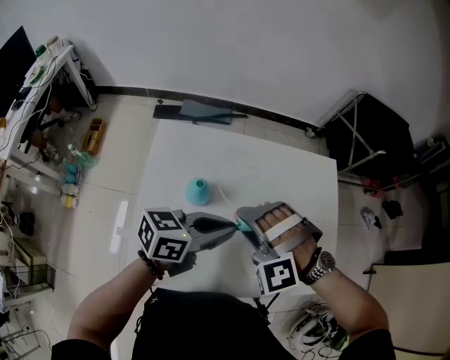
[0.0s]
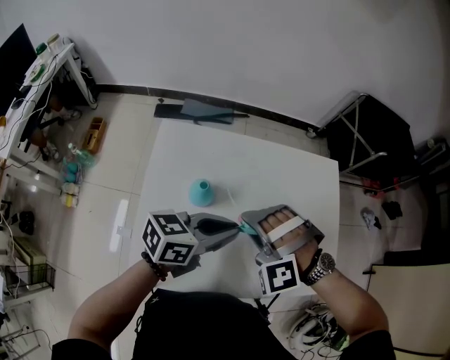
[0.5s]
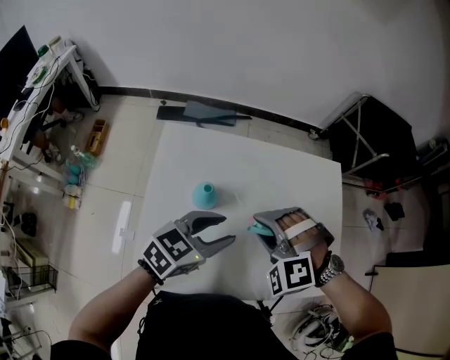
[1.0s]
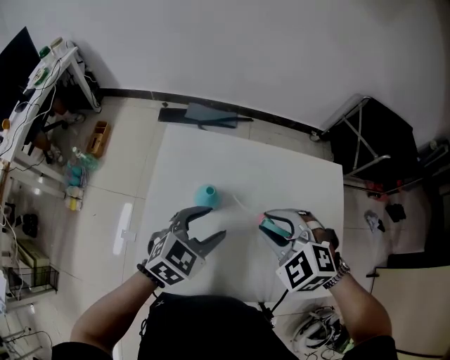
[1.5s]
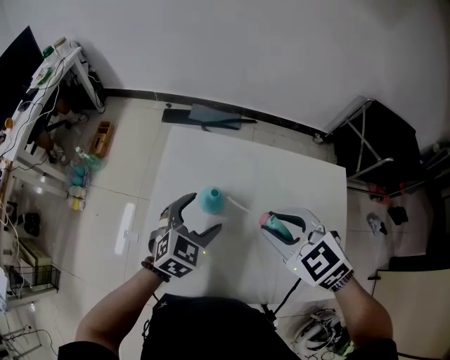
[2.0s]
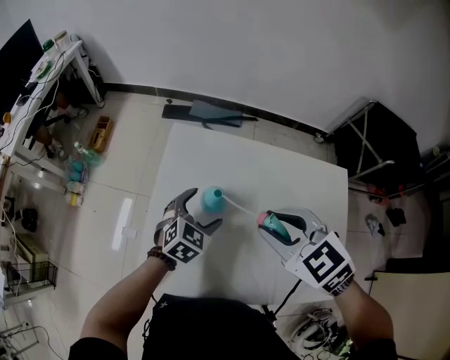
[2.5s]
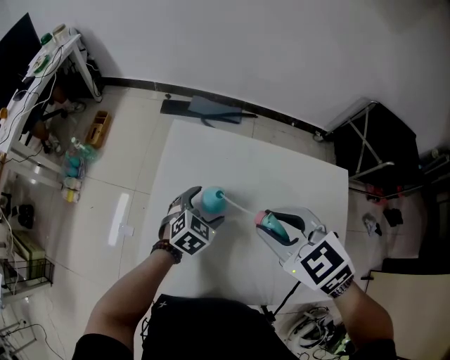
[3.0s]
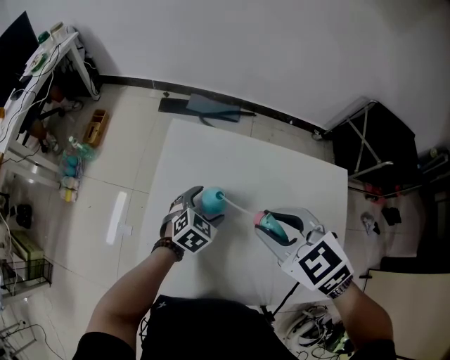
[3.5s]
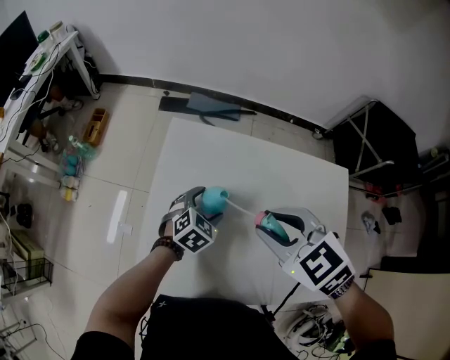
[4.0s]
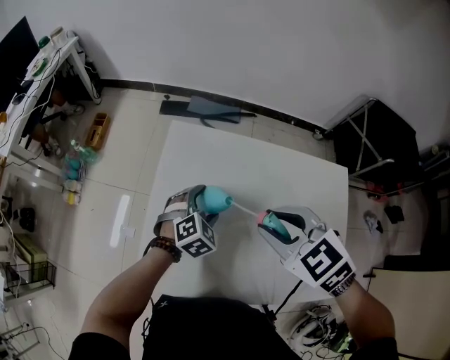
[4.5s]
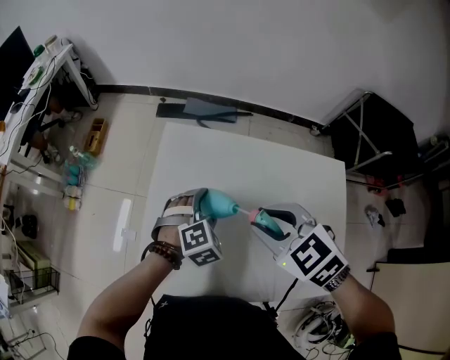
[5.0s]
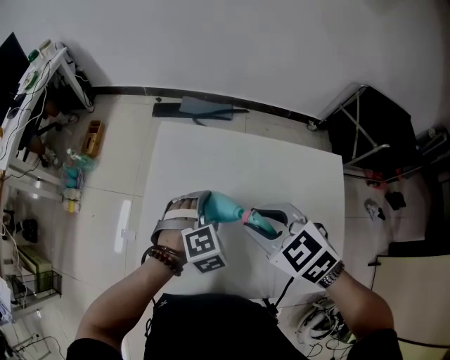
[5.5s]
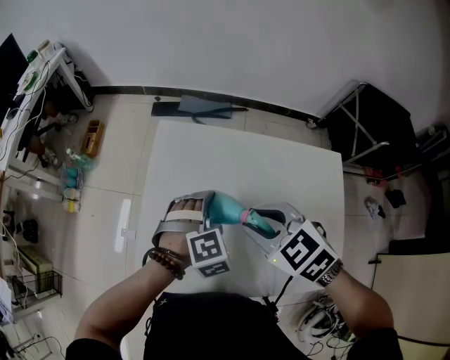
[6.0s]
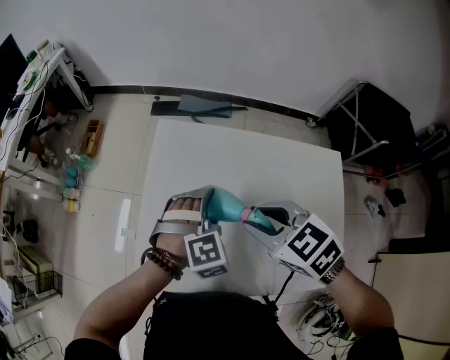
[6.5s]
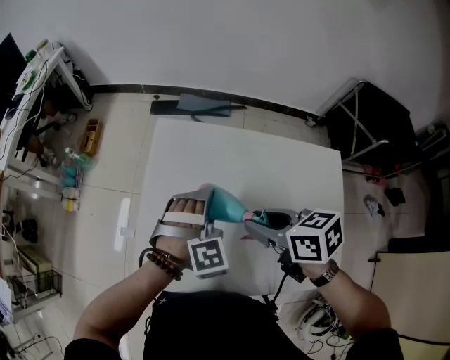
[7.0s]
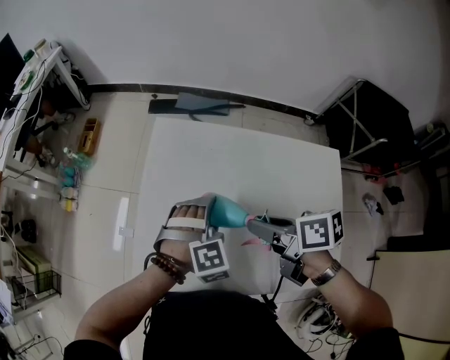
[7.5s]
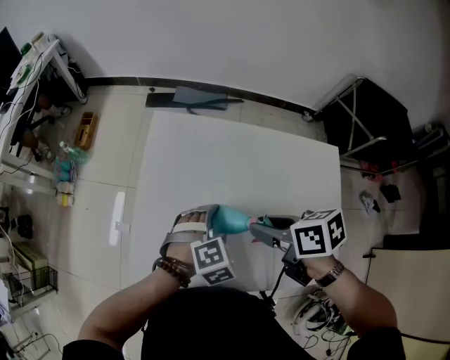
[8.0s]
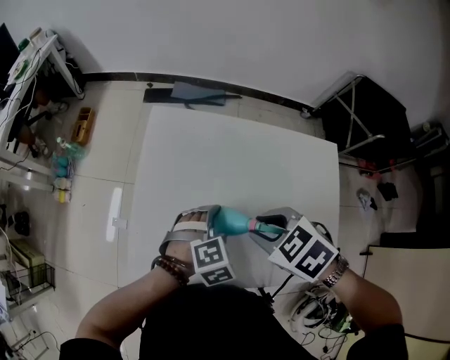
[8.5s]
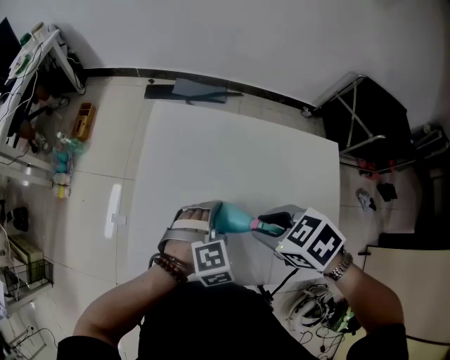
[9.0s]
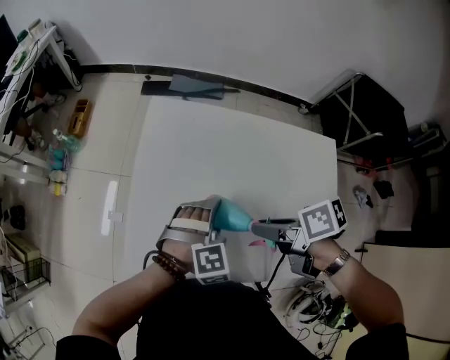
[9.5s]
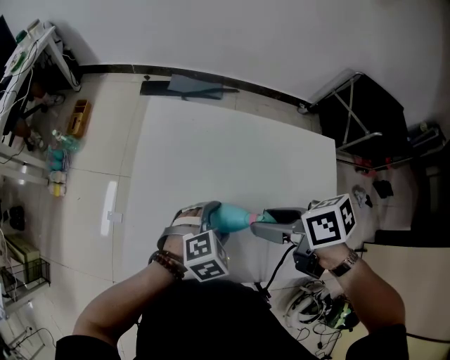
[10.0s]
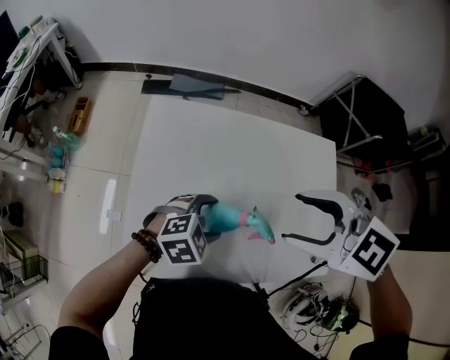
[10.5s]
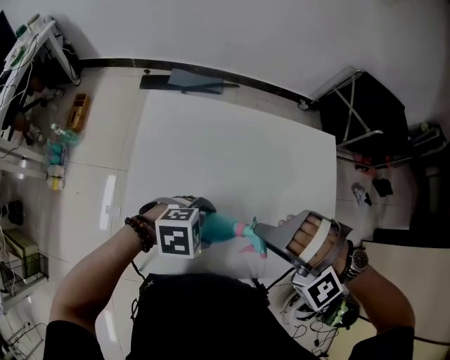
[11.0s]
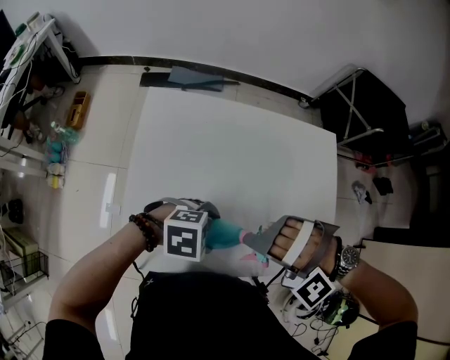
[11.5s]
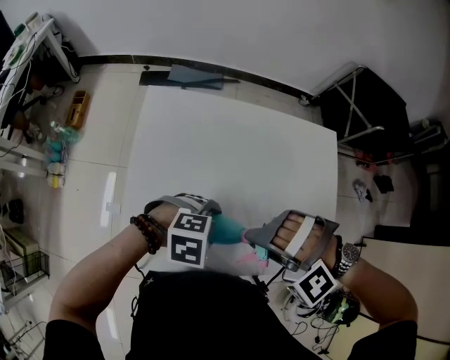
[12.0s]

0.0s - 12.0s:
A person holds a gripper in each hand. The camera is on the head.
0.0s - 2.0s: The right gripper goes about 5 cm upward, rotates around the line of its fingers by approximately 60 degrees, clockwise from behind, and closes up. Meanwhile the left gripper moves some 15 cm, rotates roughly 60 degrees, and opens up.
2.0s - 4.0s: The left gripper shifts about 10 cm downward.
4.0s - 6.0s: The left gripper moves upward, about 10 cm, and swivels roughly 40 degrees.
6.0s - 8.0s: The left gripper heads backward, covering roughly 5 cm. The right gripper shifts by approximately 5 cm, and twists approximately 50 degrees clockwise, seen from behind.
8.0s - 10.0s: The right gripper opens its fingers.
10.0s - 12.0s: The right gripper reaches roughly 10 cm upward, then returns, rolls counterclockwise, seen from behind, by about 120 degrees, and closes. Meanwhile the left gripper ends up approximately 5 cm from where it was, and changes its angle by approximately 40 degrees.

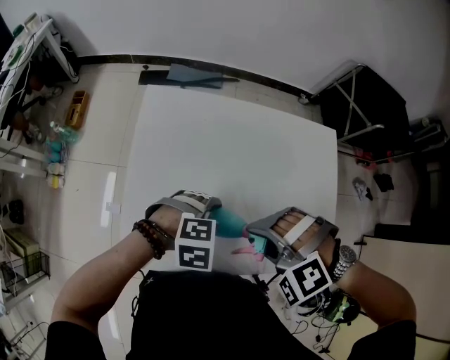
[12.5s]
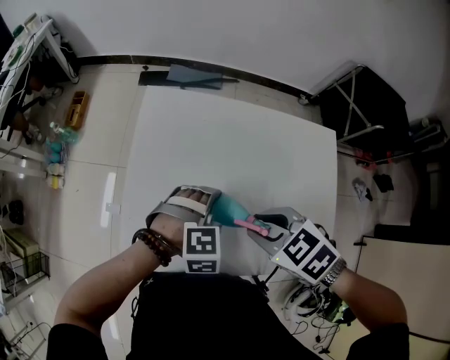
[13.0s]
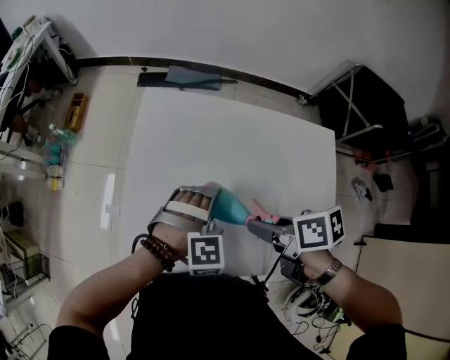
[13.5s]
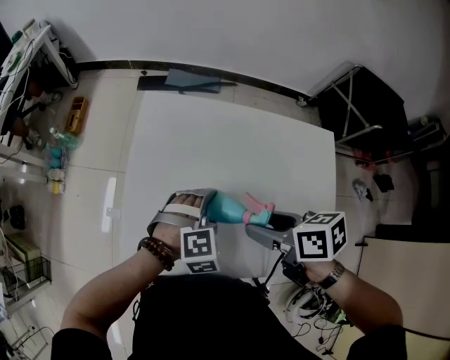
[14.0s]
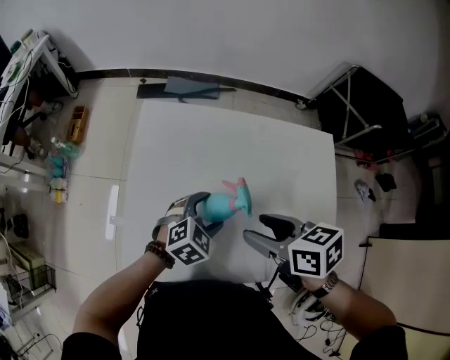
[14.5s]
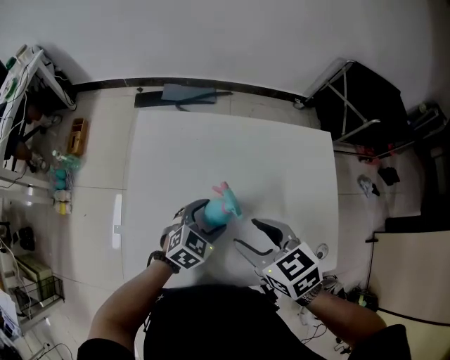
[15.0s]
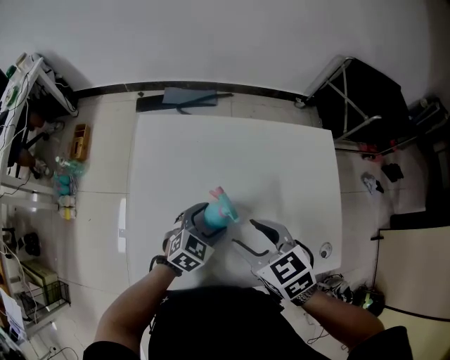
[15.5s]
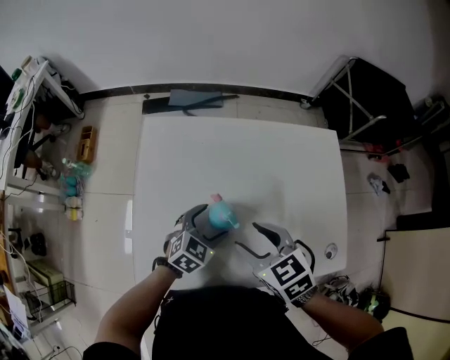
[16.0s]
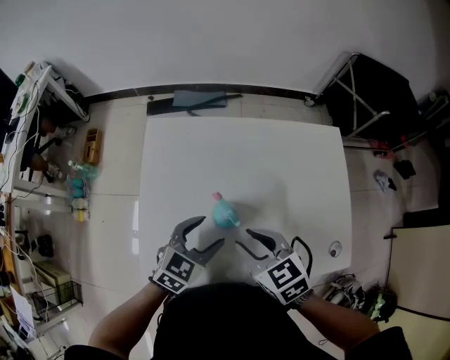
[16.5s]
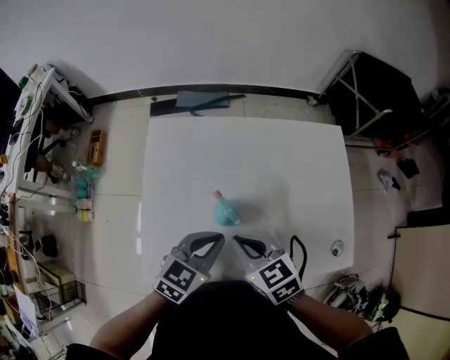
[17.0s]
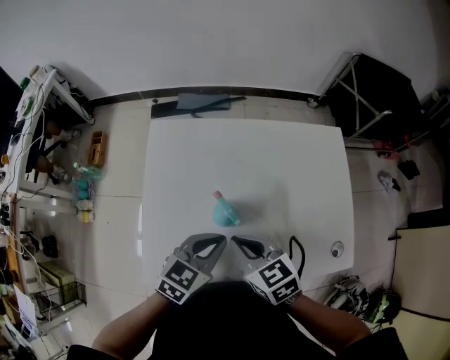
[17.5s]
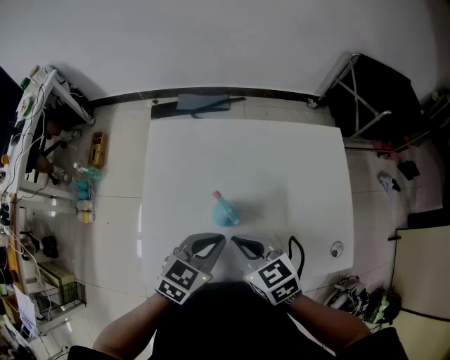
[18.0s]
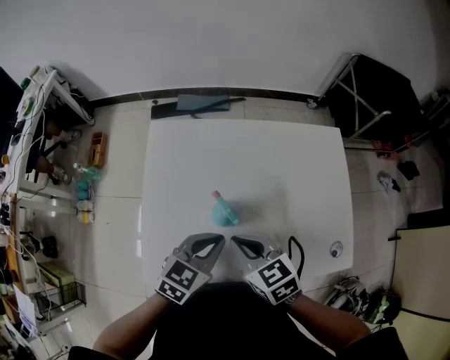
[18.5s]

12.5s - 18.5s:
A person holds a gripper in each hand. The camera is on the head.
12.5s - 14.5s: The left gripper shifts by some 5 cm, and rotates approximately 40 degrees. Meanwhile the right gripper shifts by approximately 5 cm, rotates around the line of its fingers by approximately 100 degrees, clockwise from behind, and opens up.
14.5s - 16.5s: The right gripper shifts by some 5 cm, and turns by about 20 degrees; the left gripper moves roughly 5 cm.
16.5s - 18.5s: The left gripper closes up, while the right gripper closes up.

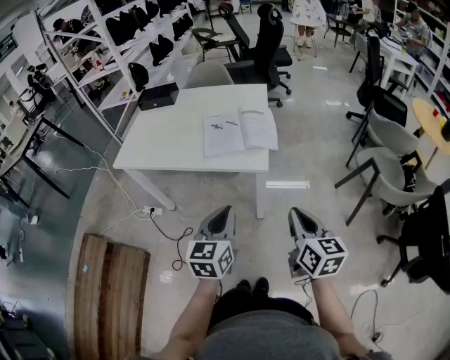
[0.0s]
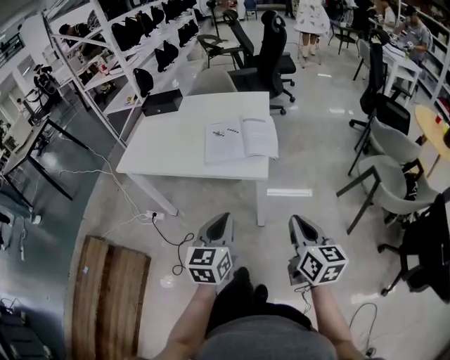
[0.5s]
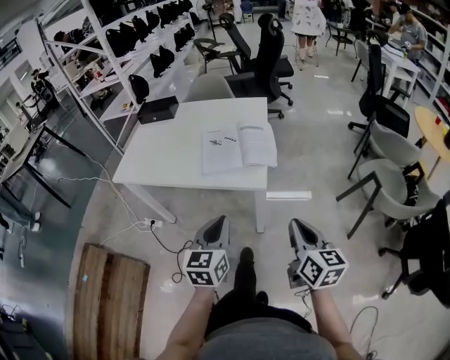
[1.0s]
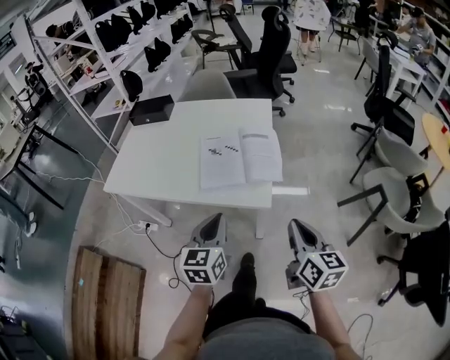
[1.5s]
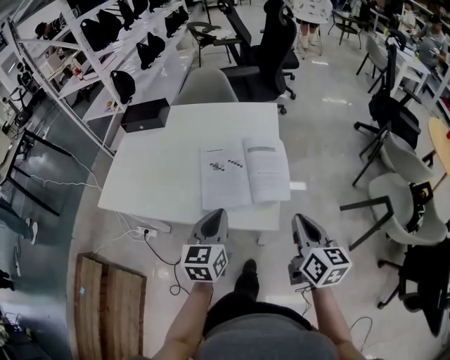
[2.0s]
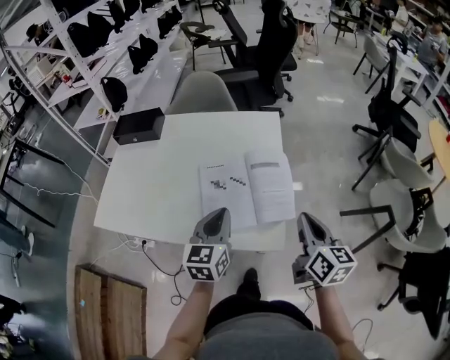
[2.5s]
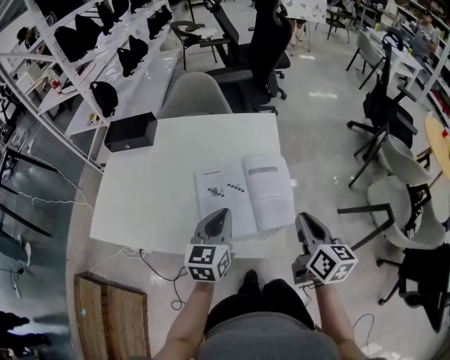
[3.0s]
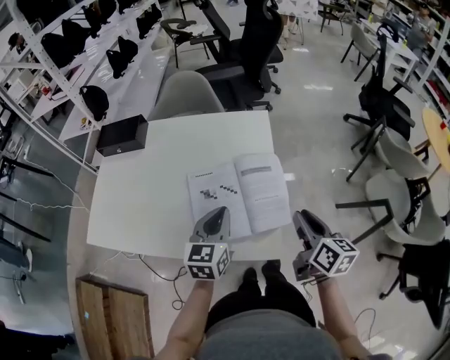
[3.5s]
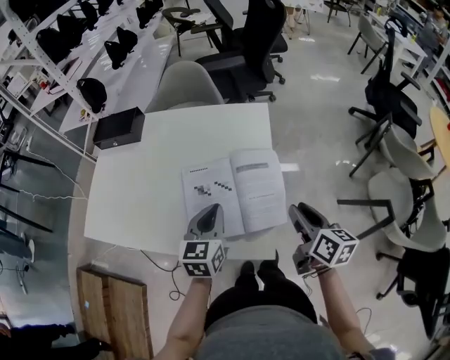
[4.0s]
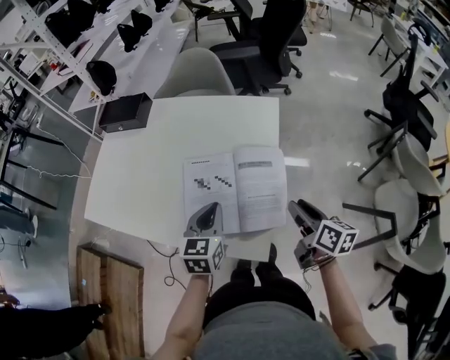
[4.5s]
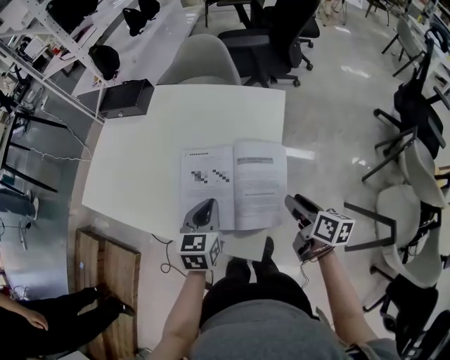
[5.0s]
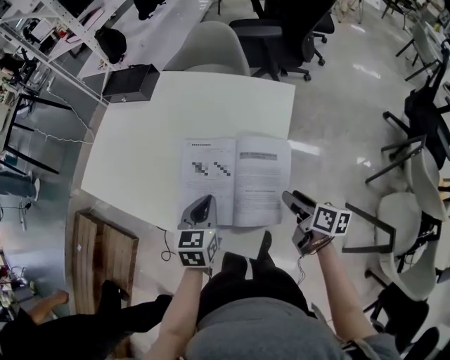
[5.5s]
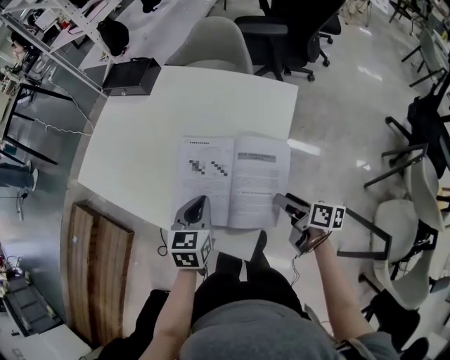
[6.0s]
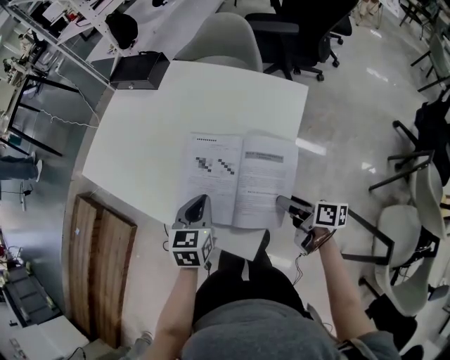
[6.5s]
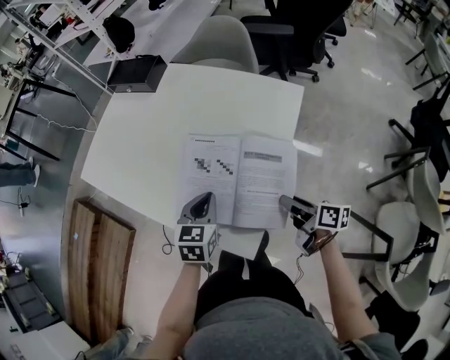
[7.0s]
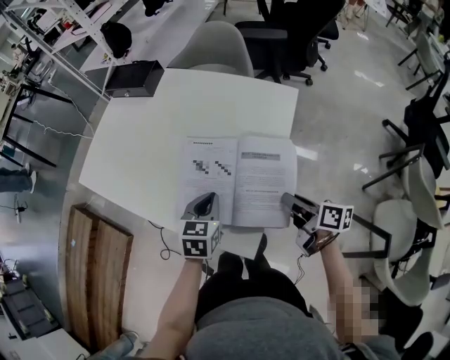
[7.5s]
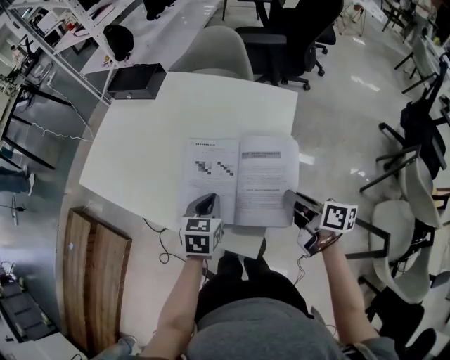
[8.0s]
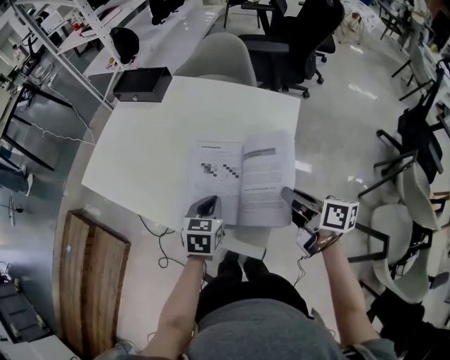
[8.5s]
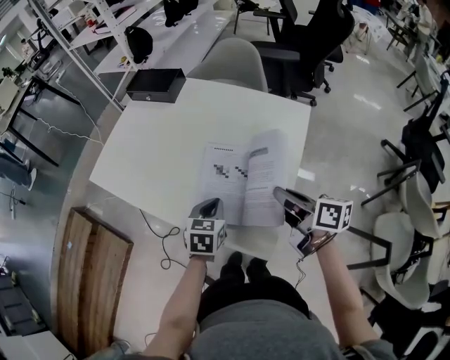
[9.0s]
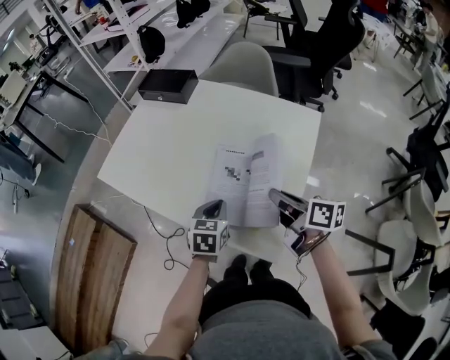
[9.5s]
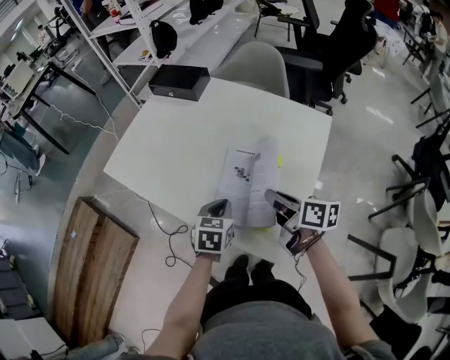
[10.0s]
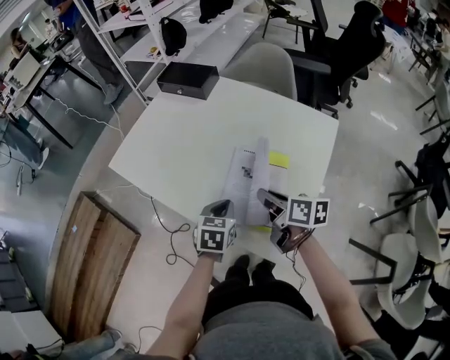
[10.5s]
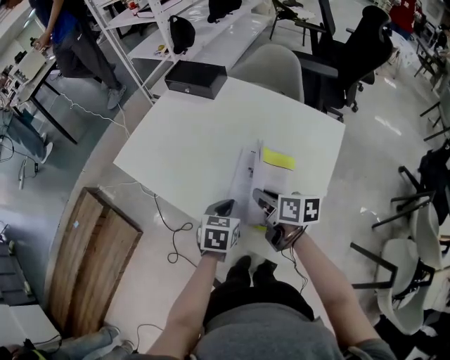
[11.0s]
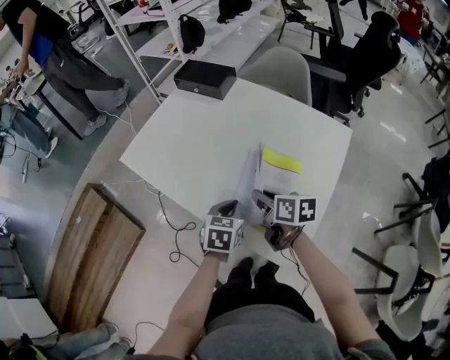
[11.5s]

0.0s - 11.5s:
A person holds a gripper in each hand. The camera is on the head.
0.0s - 2.0s: The grippers both shift forward by some 25 cm.
2.0s - 4.0s: The grippers both shift forward by roughly 15 cm. The right gripper opens up.
4.0s - 6.0s: The left gripper moves downward, approximately 5 cm, and turns by about 20 degrees; the right gripper travels downward by approximately 15 cm, swivels approximately 40 degrees, and opens its fingers.
6.0s - 7.5s: The right gripper closes its fingers.
7.5s - 9.5s: The right gripper heads to the left, upward and forward, covering some 15 cm. The left gripper goes approximately 5 cm to the left.
9.5s - 11.5s: The right gripper goes roughly 15 cm to the left and forward, and swivels approximately 20 degrees.
